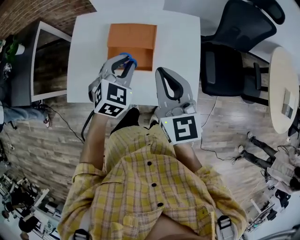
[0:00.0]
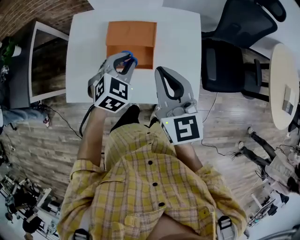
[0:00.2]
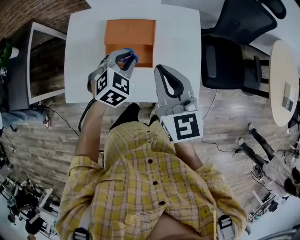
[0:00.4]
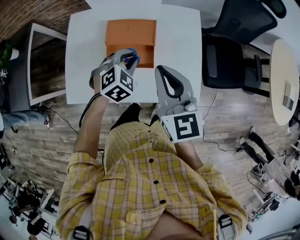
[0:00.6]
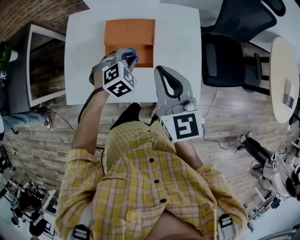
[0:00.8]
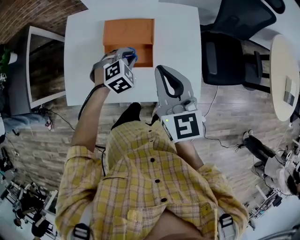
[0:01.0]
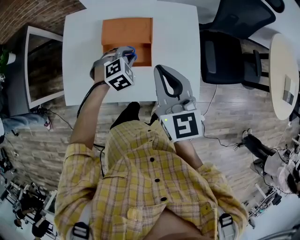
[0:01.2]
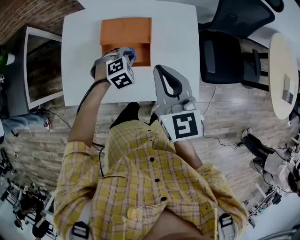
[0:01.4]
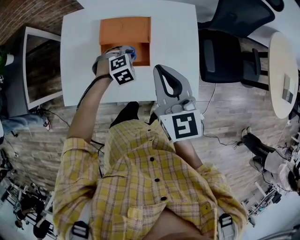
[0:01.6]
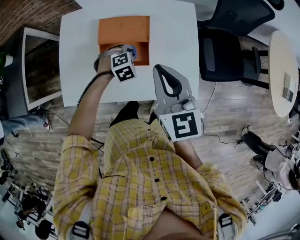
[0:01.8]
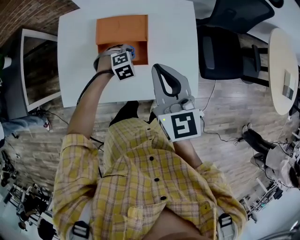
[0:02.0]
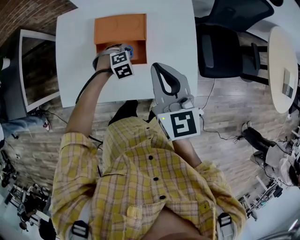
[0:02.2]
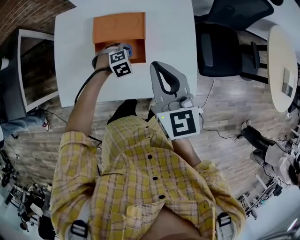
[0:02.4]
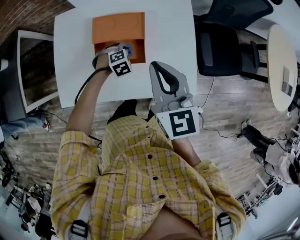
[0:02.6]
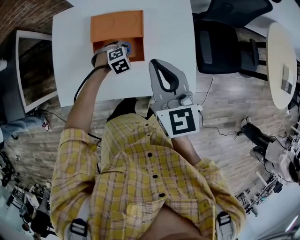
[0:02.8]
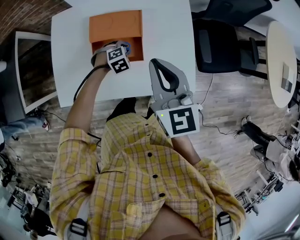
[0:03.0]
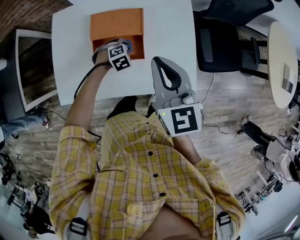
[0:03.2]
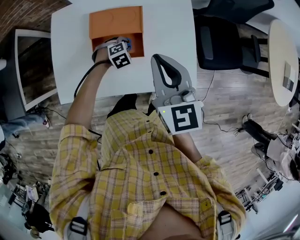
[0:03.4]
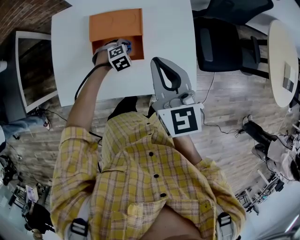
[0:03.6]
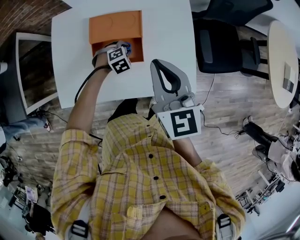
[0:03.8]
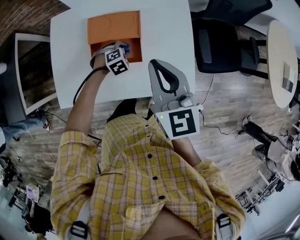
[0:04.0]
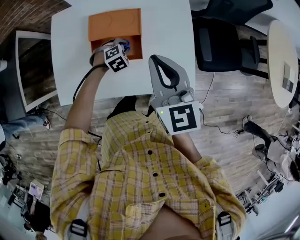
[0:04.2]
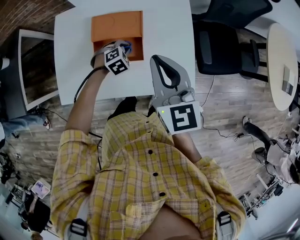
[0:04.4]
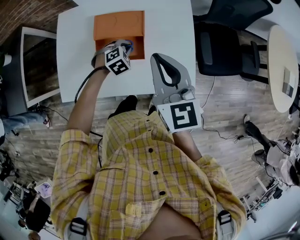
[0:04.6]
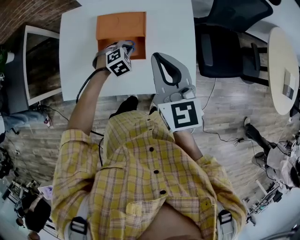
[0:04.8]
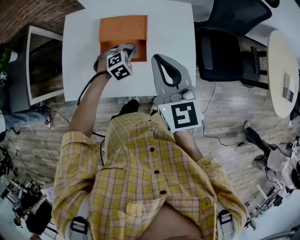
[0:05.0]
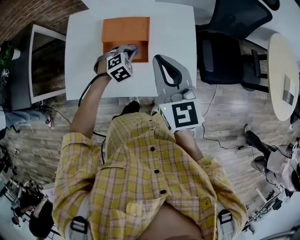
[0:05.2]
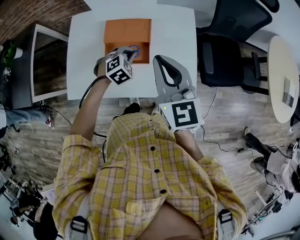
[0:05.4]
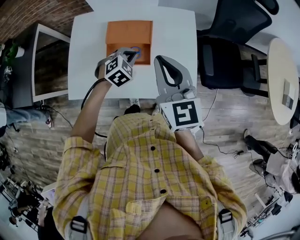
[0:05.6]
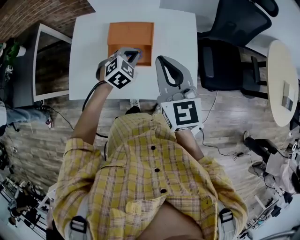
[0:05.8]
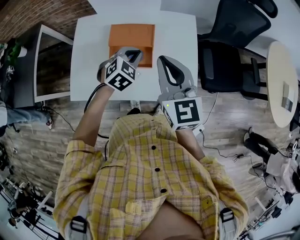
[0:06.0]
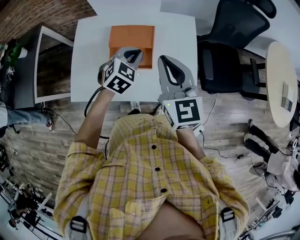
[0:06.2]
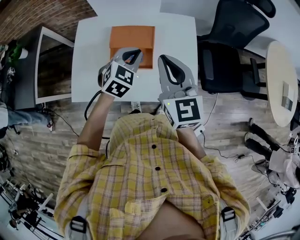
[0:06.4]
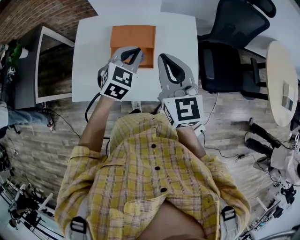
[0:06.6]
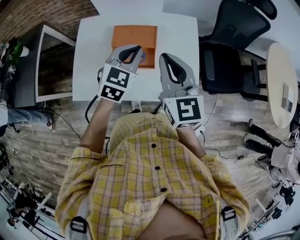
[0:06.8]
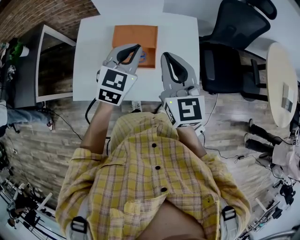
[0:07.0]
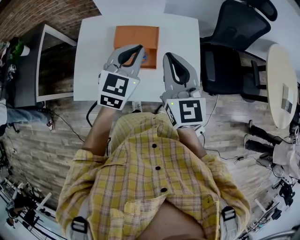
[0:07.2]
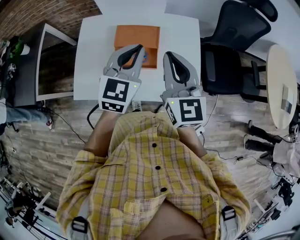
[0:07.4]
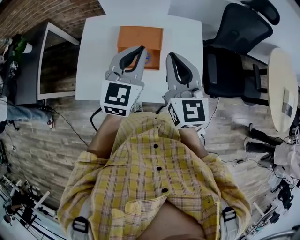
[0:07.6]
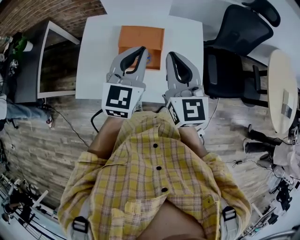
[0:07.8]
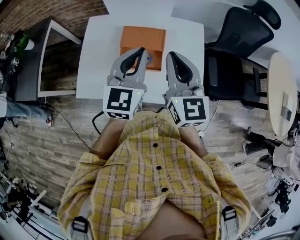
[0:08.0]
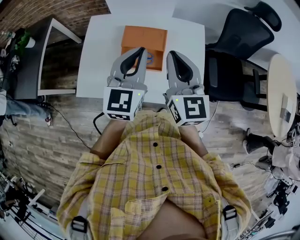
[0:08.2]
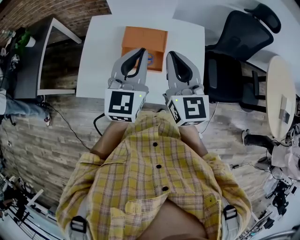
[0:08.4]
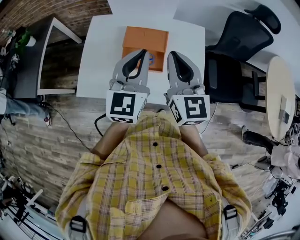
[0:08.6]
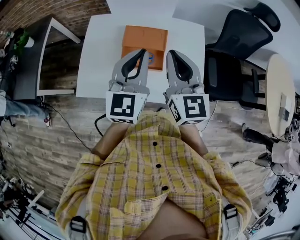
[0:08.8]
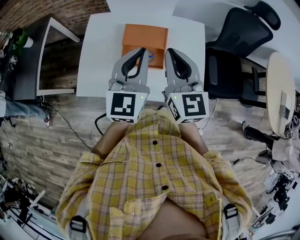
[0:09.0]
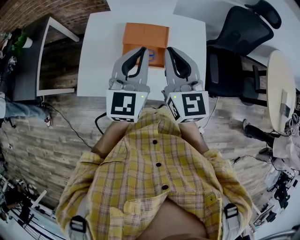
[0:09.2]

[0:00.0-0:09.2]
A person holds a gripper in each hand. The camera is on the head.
0:00.0 to 0:01.6: The left gripper heads downward, covering about 20 cm, and swivels about 40 degrees.
0:01.6 to 0:03.0: The left gripper moves downward, some 10 cm.
0:03.0 to 0:04.6: The left gripper shifts roughly 5 cm upward.
0:04.6 to 0:06.2: The left gripper shifts roughly 20 cm upward, and turns by approximately 30 degrees.
0:06.2 to 0:07.6: The left gripper travels upward by some 15 cm, and changes its angle by approximately 30 degrees.
0:07.6 to 0:09.2: The grippers move only a little.

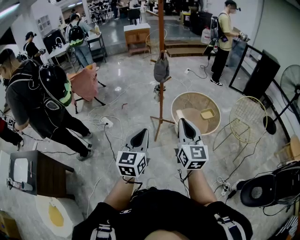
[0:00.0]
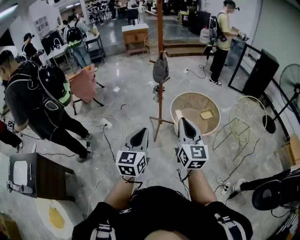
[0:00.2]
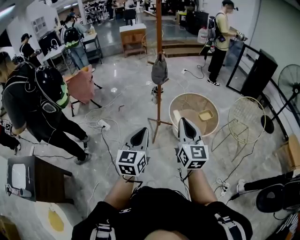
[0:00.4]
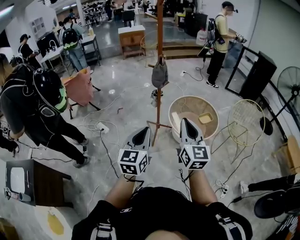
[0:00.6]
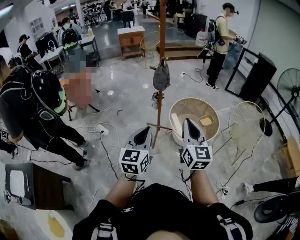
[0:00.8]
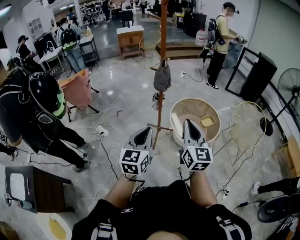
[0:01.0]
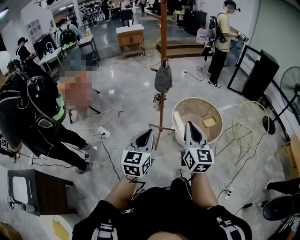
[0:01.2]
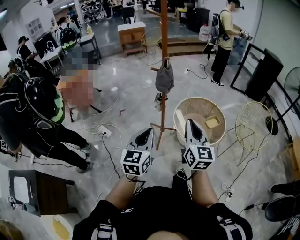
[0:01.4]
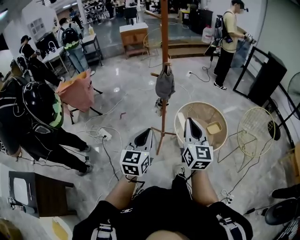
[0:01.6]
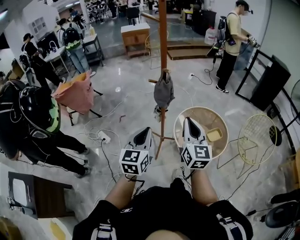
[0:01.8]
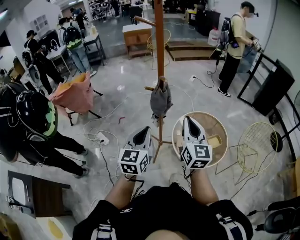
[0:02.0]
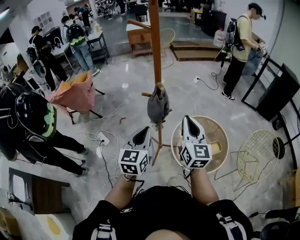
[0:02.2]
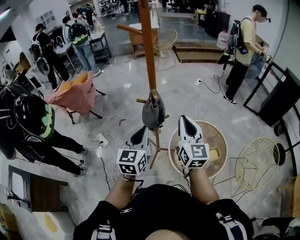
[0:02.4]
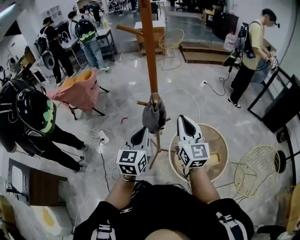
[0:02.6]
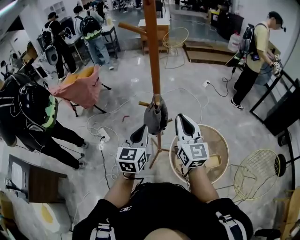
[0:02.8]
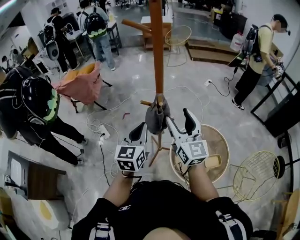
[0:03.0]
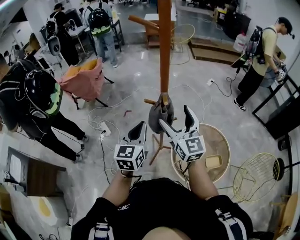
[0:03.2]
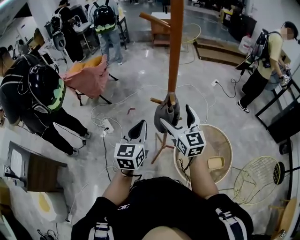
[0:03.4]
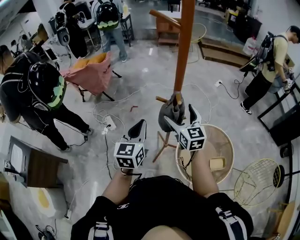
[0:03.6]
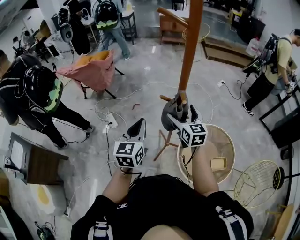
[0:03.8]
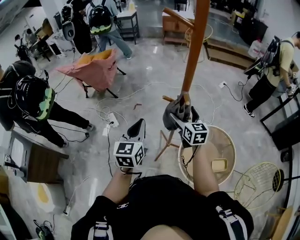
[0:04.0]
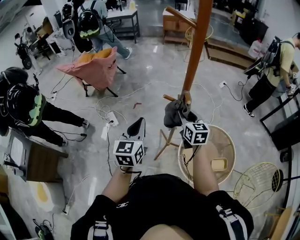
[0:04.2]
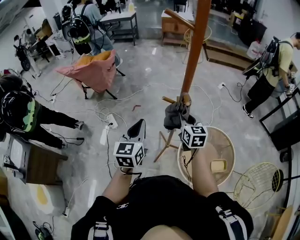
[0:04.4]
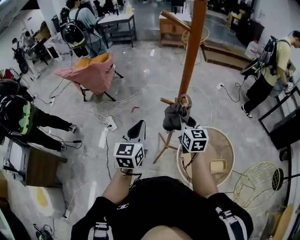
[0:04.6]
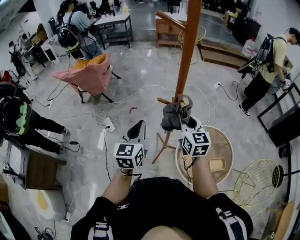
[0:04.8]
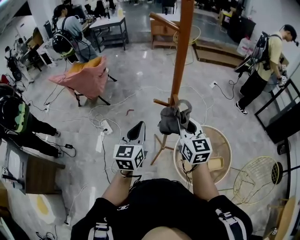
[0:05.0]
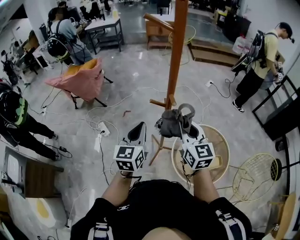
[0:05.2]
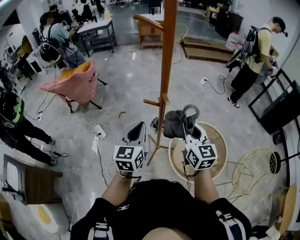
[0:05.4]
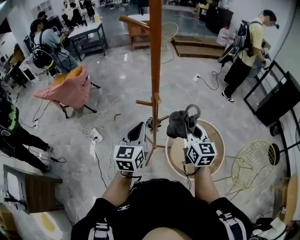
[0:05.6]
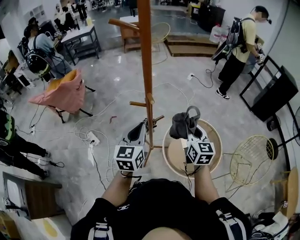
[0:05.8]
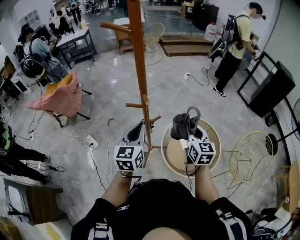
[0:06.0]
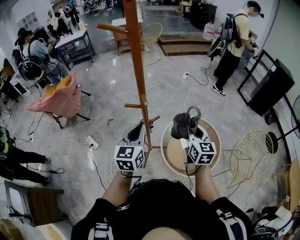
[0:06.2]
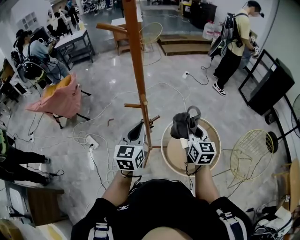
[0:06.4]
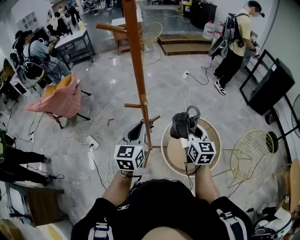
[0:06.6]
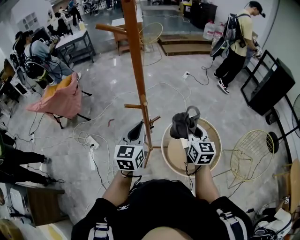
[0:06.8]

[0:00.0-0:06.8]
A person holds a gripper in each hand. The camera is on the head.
0:00.0 to 0:01.4: The two grippers go some 20 cm forward.
0:01.4 to 0:02.8: The two grippers travel together, forward, some 40 cm. The right gripper changes its angle by approximately 20 degrees.
0:02.8 to 0:04.0: The right gripper travels forward, downward and to the left by some 20 cm, swivels about 20 degrees, and opens its fingers. The left gripper is displaced to the left by approximately 10 cm.
0:04.0 to 0:05.4: The left gripper goes about 5 cm to the right. Meanwhile the right gripper is displaced backward, upward and to the right by approximately 15 cm, and closes.
0:05.4 to 0:06.8: The right gripper is displaced to the right and downward by about 15 cm. Meanwhile the left gripper goes some 10 cm to the right.

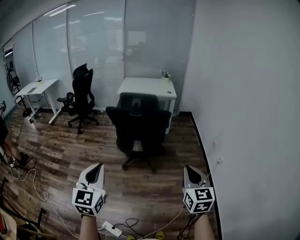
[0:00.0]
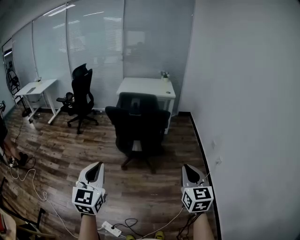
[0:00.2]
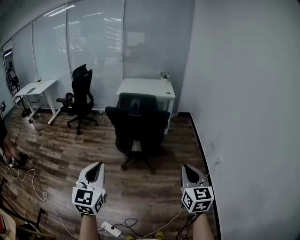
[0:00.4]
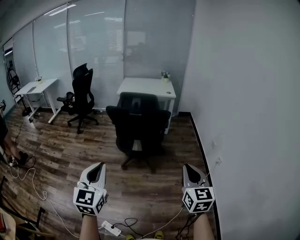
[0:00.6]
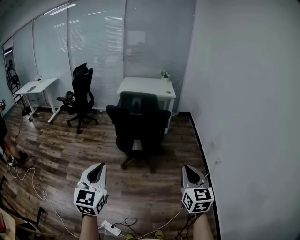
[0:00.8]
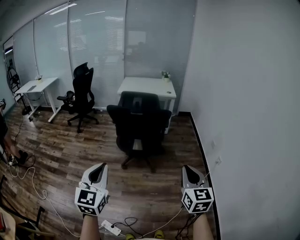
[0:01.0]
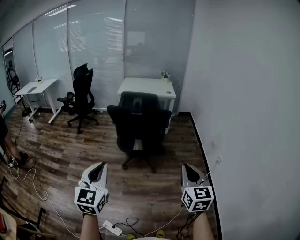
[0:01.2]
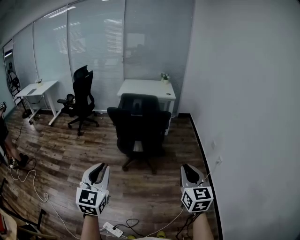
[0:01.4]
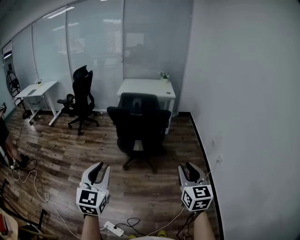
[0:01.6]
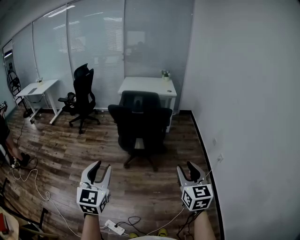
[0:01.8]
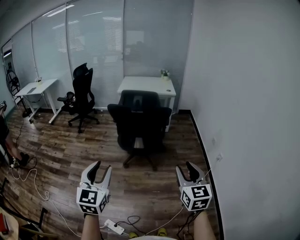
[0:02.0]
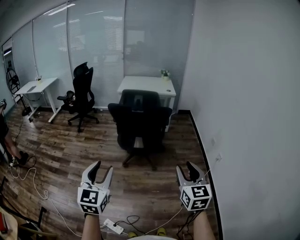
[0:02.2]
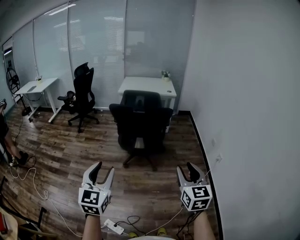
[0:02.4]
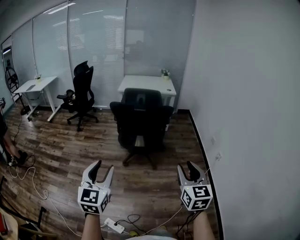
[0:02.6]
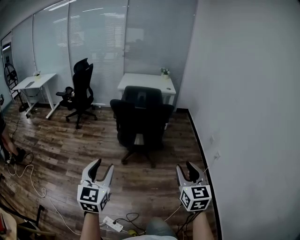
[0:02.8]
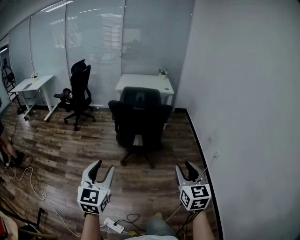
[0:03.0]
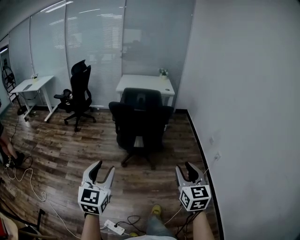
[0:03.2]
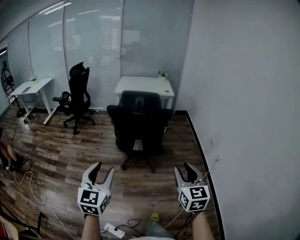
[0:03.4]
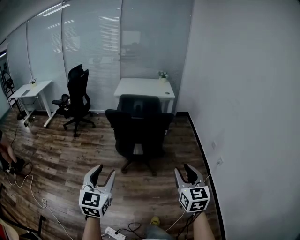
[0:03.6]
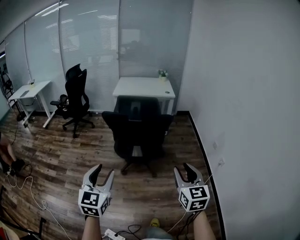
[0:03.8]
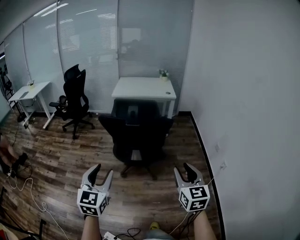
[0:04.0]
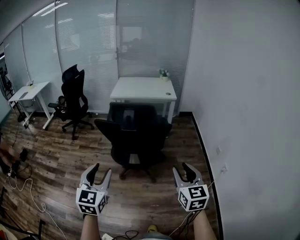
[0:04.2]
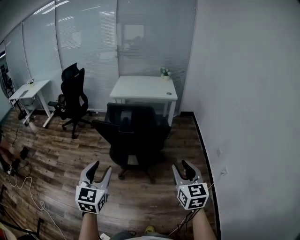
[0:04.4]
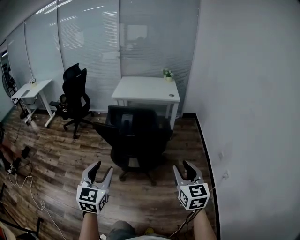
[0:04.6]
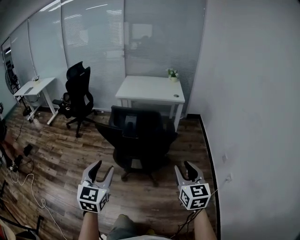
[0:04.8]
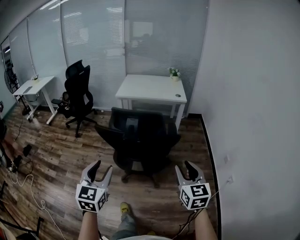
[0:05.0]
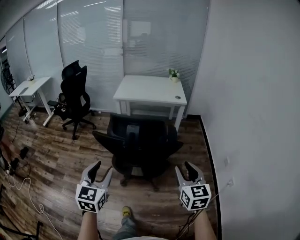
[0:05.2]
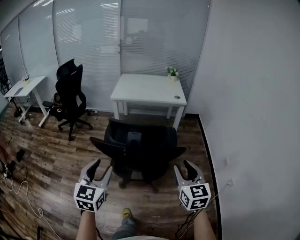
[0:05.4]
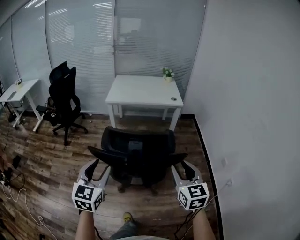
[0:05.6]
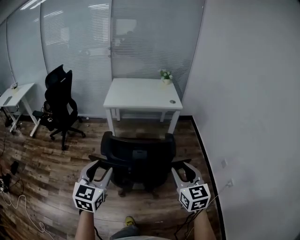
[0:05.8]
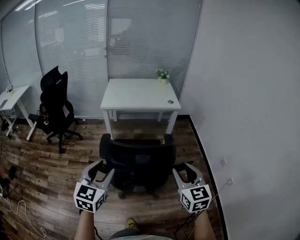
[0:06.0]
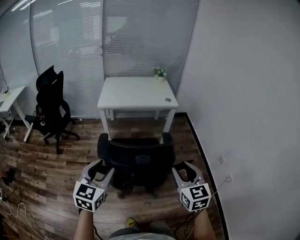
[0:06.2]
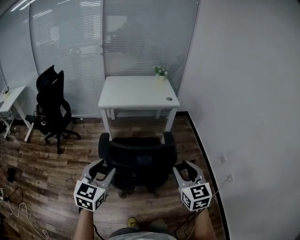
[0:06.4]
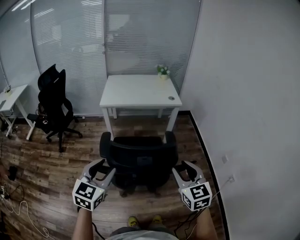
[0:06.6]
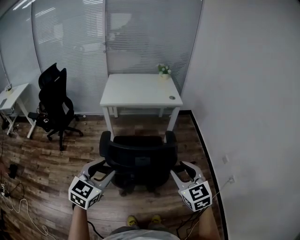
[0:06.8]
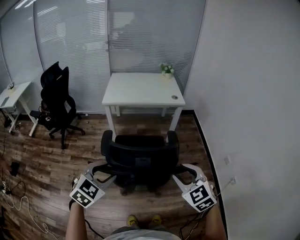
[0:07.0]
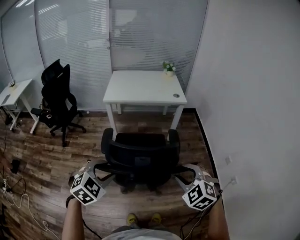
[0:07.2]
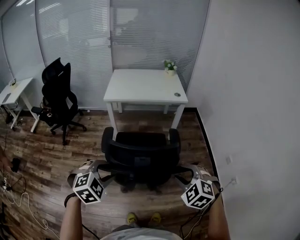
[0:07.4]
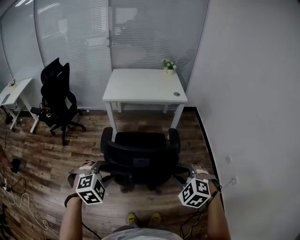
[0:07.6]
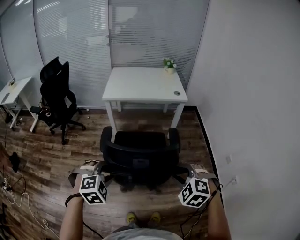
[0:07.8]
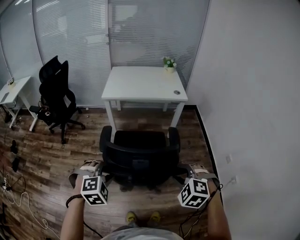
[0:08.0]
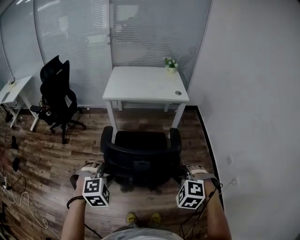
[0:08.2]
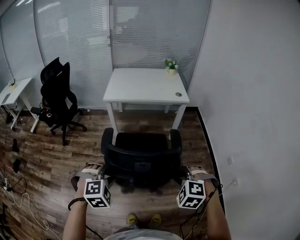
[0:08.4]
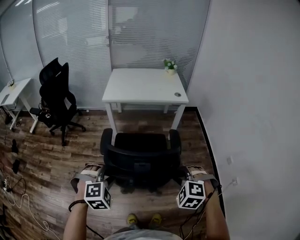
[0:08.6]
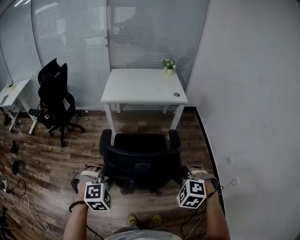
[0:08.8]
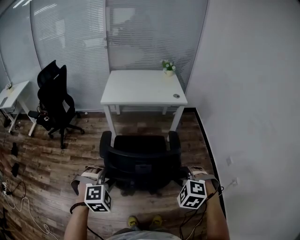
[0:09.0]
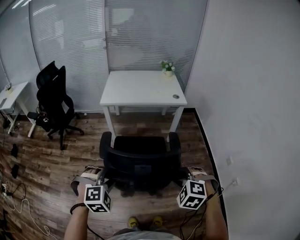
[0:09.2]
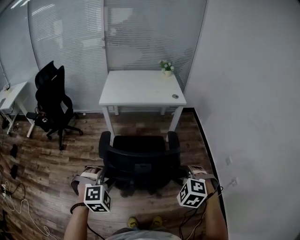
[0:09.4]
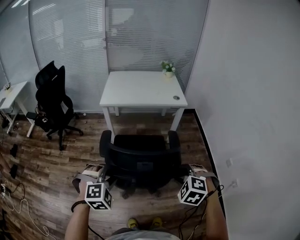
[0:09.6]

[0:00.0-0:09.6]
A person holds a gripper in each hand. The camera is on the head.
0:00.0 to 0:01.6: The right gripper opens.
0:01.6 to 0:03.2: Both grippers travel together to the left, some 5 cm.
0:03.2 to 0:04.8: The two grippers go approximately 35 cm forward.
0:04.8 to 0:06.4: The left gripper travels forward by approximately 30 cm, and turns by approximately 20 degrees; the right gripper moves forward and to the left, about 30 cm.
0:06.4 to 0:08.0: Both grippers move downward, approximately 10 cm. The right gripper angles its fingers downward, by approximately 40 degrees, while the left gripper angles its fingers downward, by some 40 degrees.
0:08.0 to 0:09.6: The grippers both shift forward by about 5 cm.
